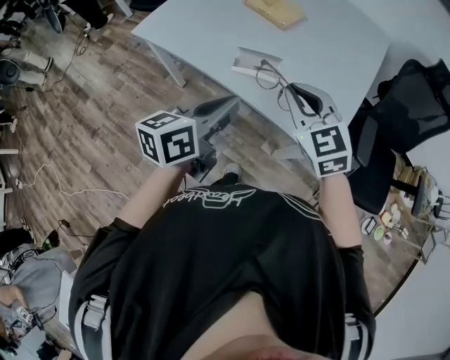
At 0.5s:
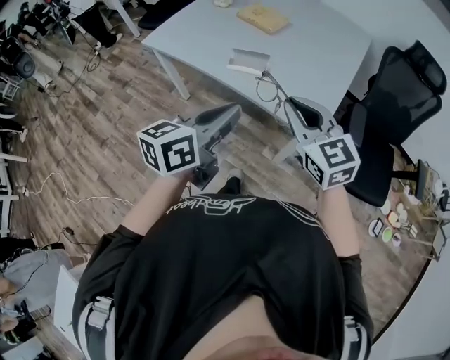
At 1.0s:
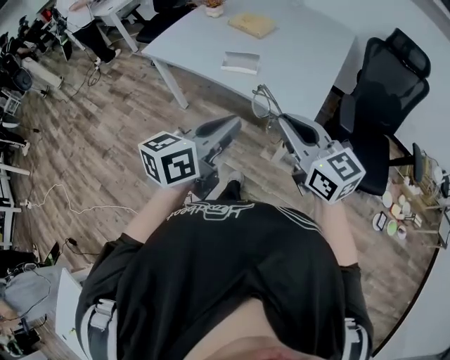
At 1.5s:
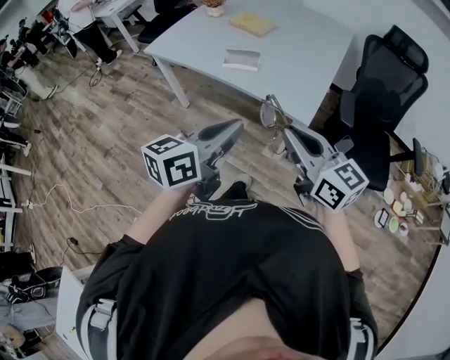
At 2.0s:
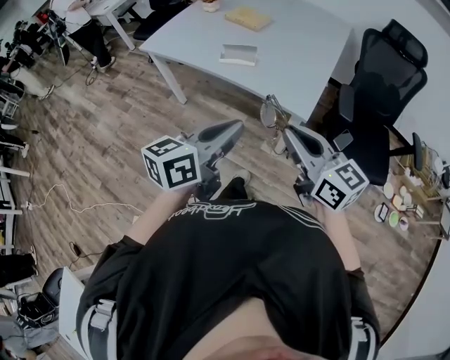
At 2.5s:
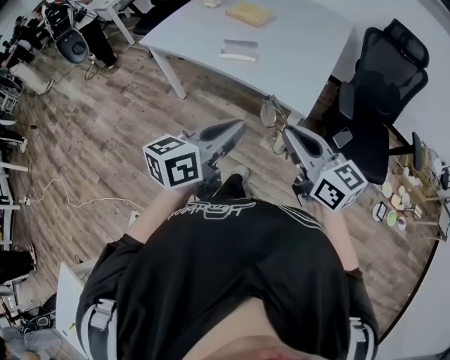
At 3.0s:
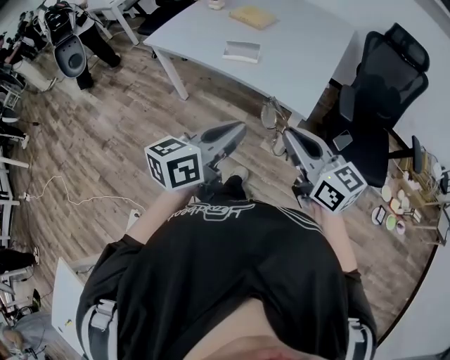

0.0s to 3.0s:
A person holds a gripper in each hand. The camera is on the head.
0.0s to 1.5s: The two grippers go roughly 25 cm backward. The right gripper changes its angle by approximately 40 degrees.
1.5s to 3.0s: The grippers make only small movements.

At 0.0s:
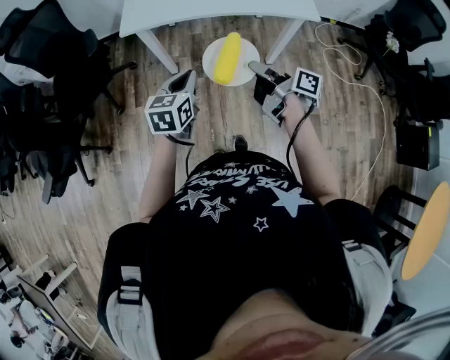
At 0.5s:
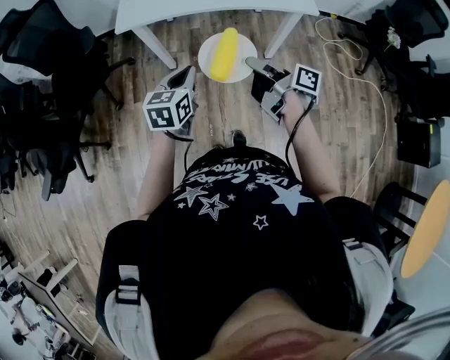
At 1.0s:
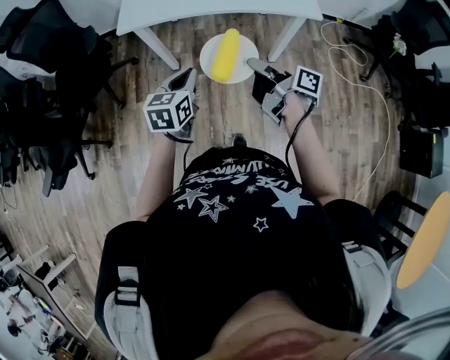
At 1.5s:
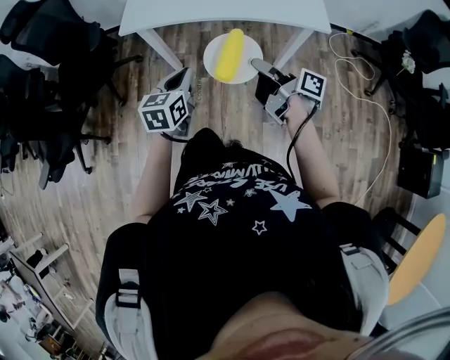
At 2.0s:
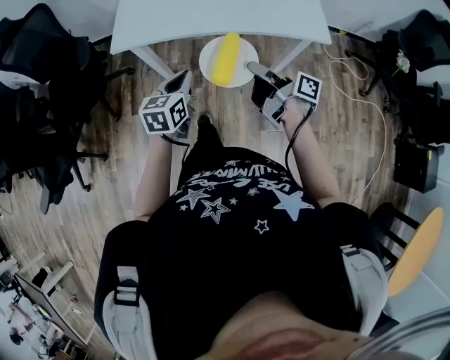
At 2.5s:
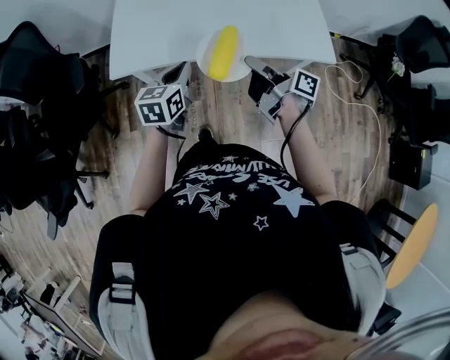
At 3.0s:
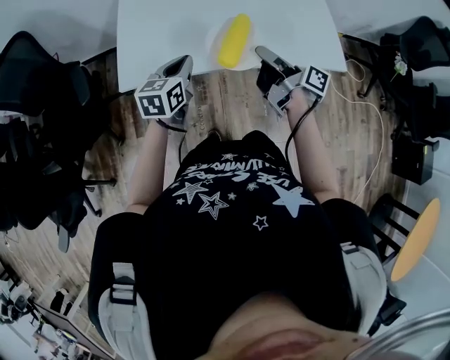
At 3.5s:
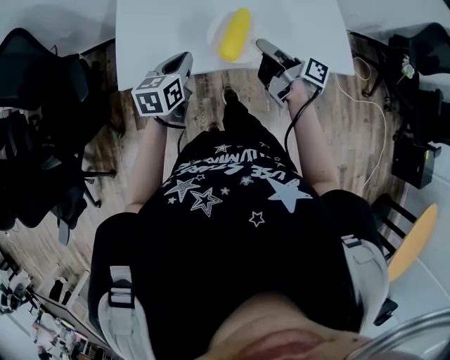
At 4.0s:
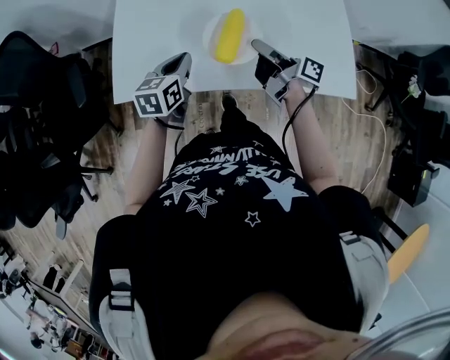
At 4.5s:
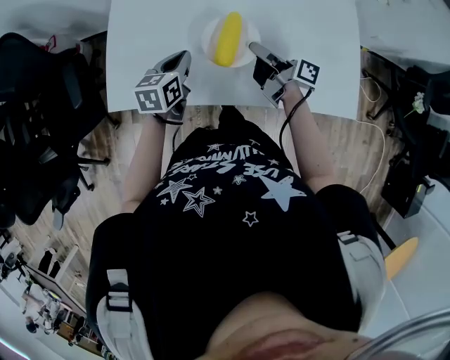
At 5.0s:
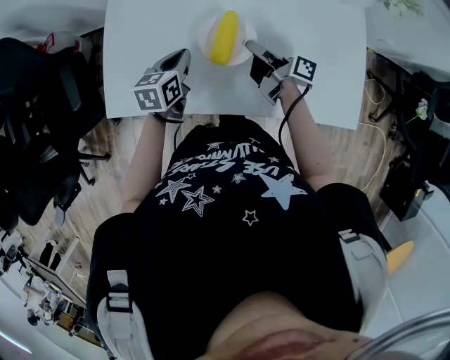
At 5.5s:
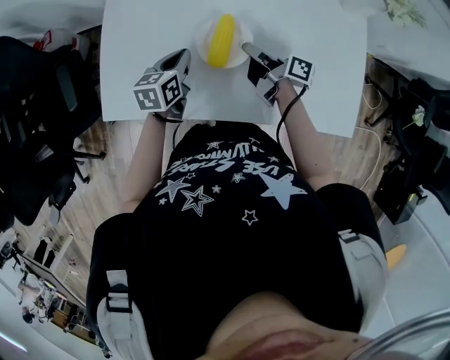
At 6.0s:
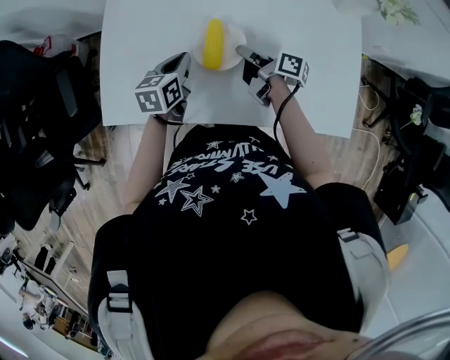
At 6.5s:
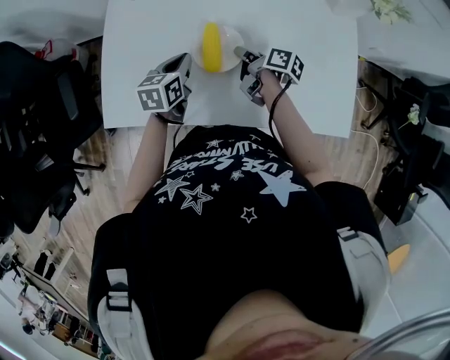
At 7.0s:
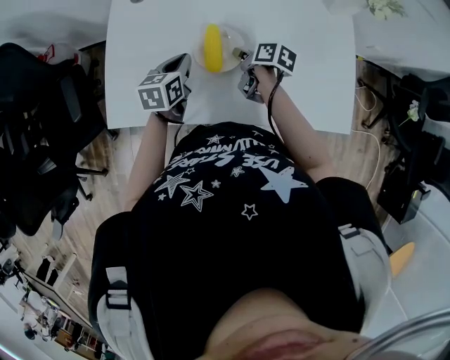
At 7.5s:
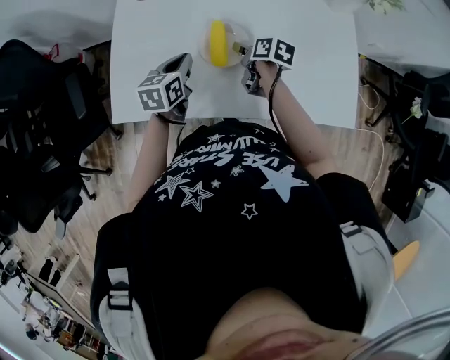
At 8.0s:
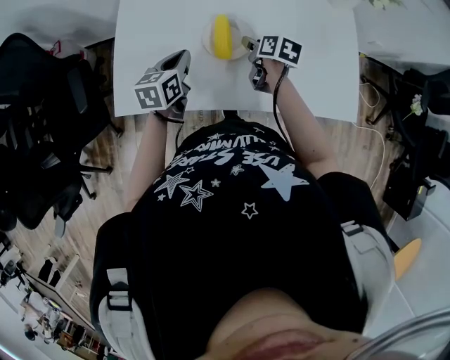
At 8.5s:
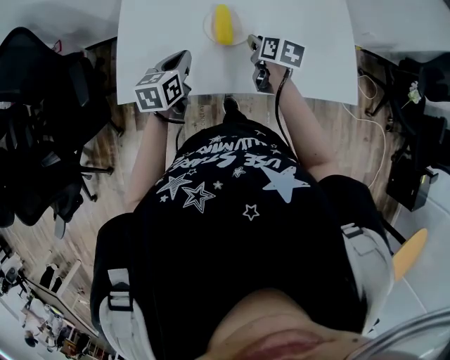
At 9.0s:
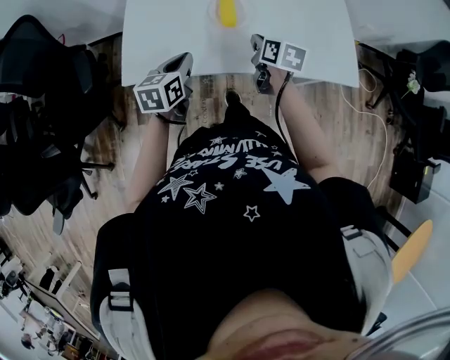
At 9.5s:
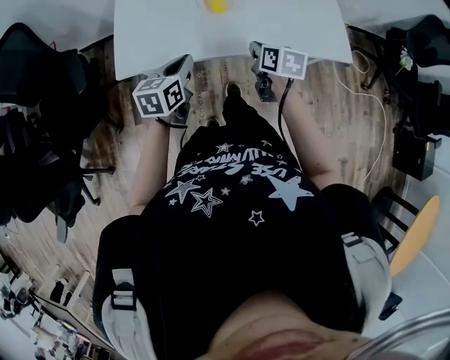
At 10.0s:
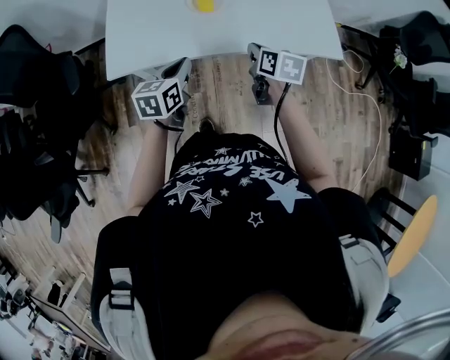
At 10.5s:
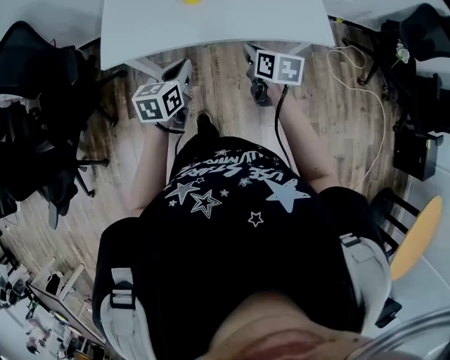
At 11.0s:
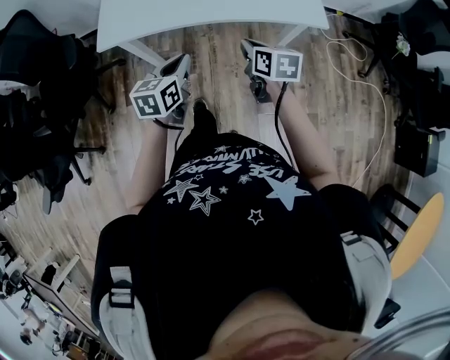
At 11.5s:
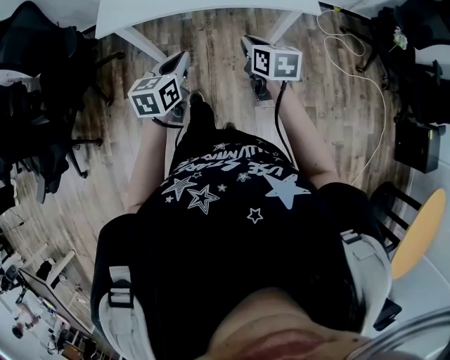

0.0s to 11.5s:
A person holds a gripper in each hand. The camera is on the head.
0.0s to 2.0s: Both grippers move forward, some 15 cm.
2.0s to 4.0s: Both grippers travel together forward, some 35 cm.
4.0s to 6.0s: Both grippers travel together forward and downward, some 15 cm.
6.0s to 7.5s: The right gripper rotates some 40 degrees, and opens.
7.5s to 9.5s: Both grippers move backward, about 25 cm. The right gripper changes its angle by about 20 degrees, and closes.
9.5s to 11.5s: The two grippers go roughly 25 cm backward and to the right.

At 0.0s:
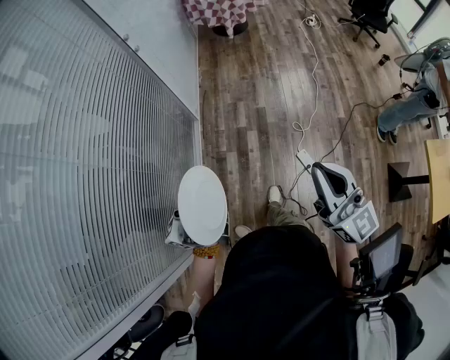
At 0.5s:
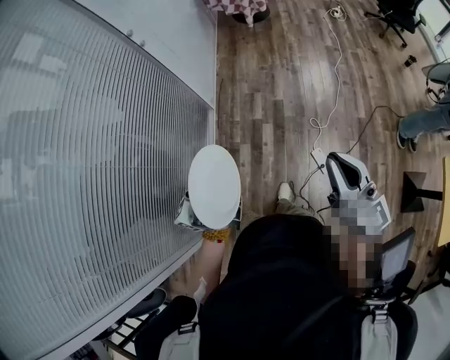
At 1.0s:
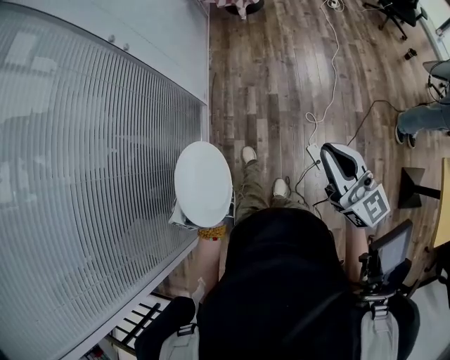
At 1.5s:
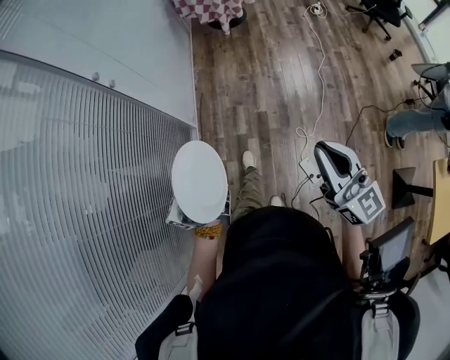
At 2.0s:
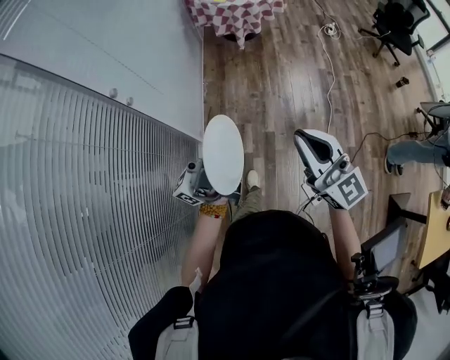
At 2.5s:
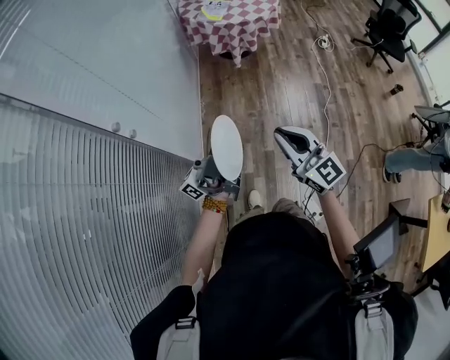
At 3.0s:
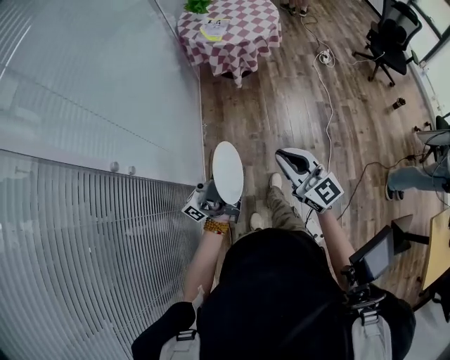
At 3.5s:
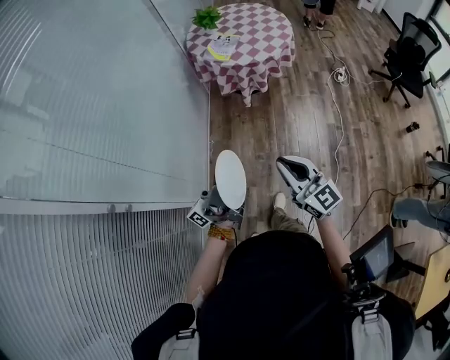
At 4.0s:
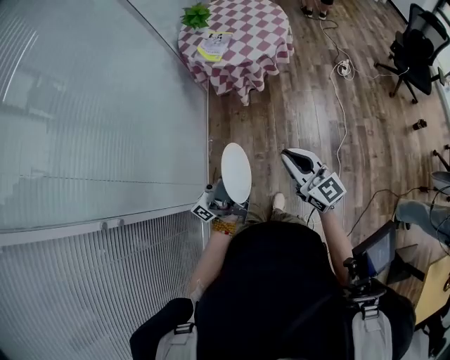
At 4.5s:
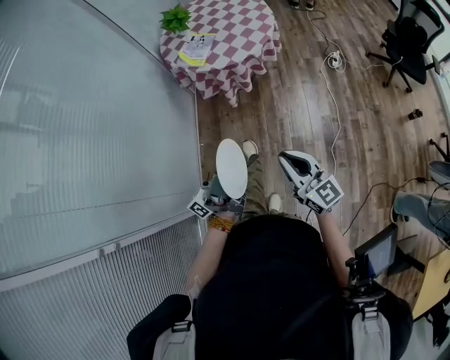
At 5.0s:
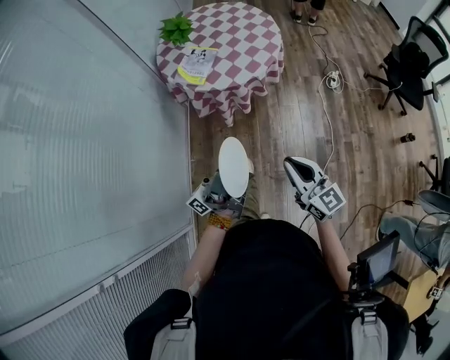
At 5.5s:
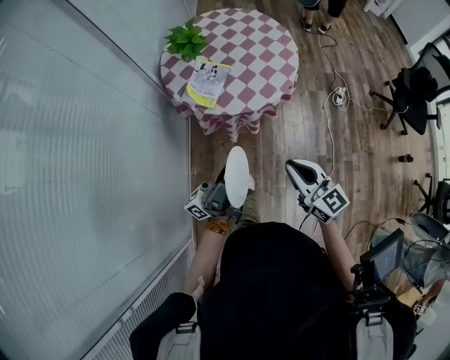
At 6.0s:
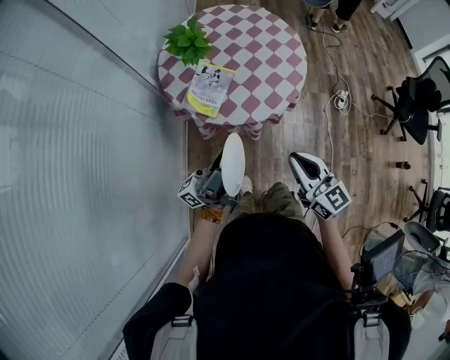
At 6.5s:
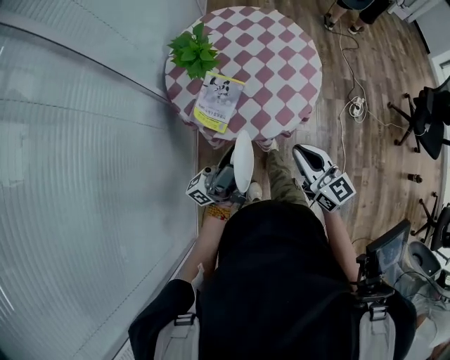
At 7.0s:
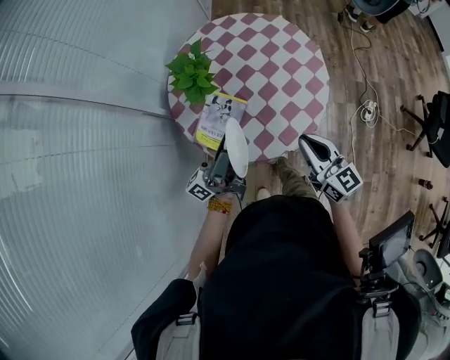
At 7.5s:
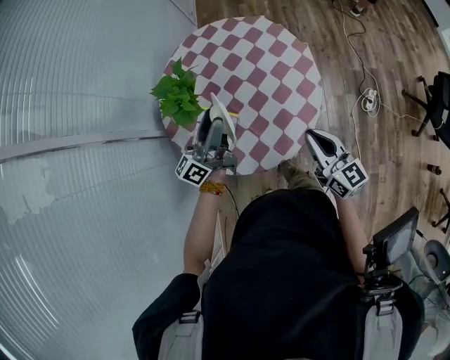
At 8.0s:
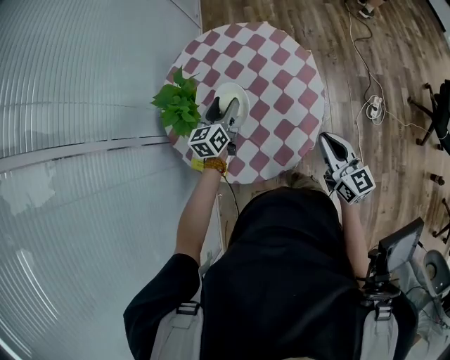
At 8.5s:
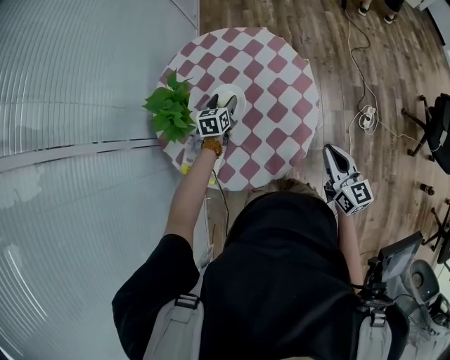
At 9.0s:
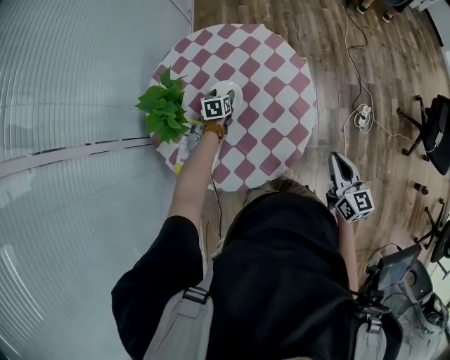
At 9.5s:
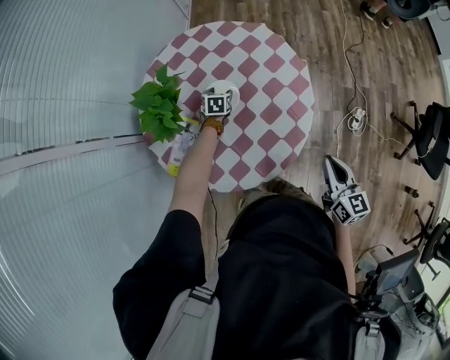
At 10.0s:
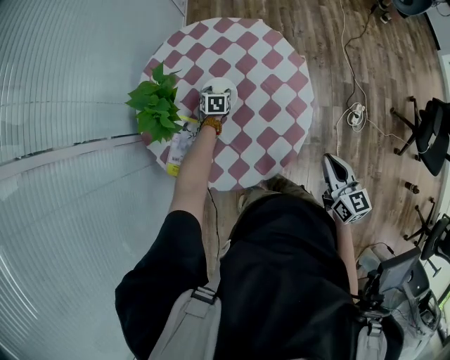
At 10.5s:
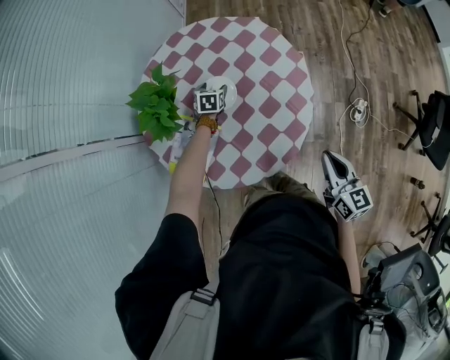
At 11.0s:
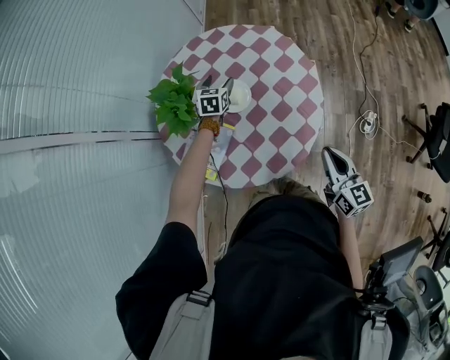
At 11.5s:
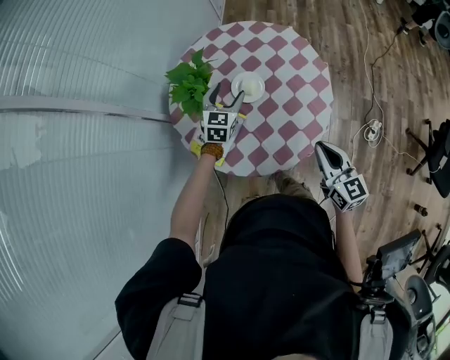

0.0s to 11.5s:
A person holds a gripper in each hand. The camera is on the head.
0.0s to 2.0s: The pair of grippers is taken forward, about 50 cm.
2.0s to 4.0s: The pair of grippers is taken forward, some 40 cm.
4.0s to 6.0s: The pair of grippers is taken forward, about 50 cm.
6.0s to 7.5s: The right gripper heads forward and to the right, covering about 35 cm, while the left gripper heads forward, covering approximately 40 cm, and points its fingers approximately 30 degrees further downward.
7.5s to 9.5s: The left gripper goes roughly 40 cm downward and forward, and tilts its fingers roughly 70 degrees downward; the right gripper moves to the right and downward, approximately 15 cm.
9.5s to 11.5s: The left gripper is displaced upward and backward by some 25 cm, and swivels about 30 degrees; the right gripper shifts some 10 cm to the left.

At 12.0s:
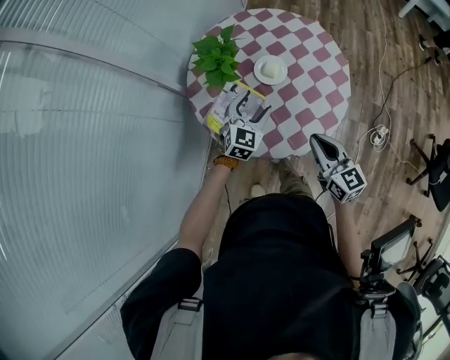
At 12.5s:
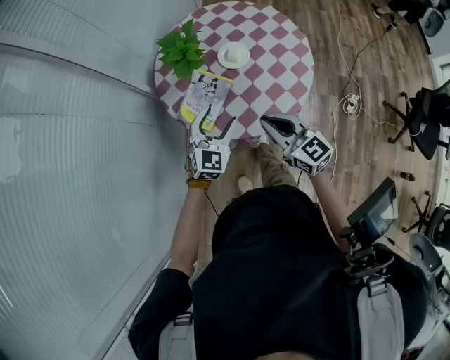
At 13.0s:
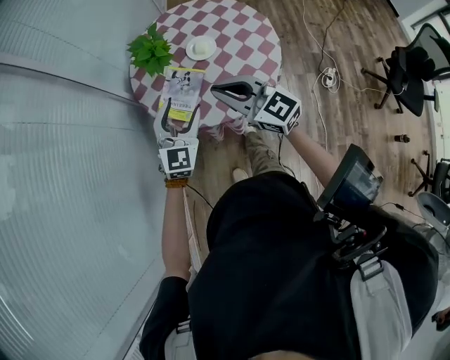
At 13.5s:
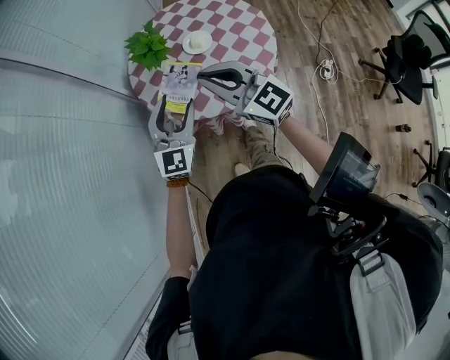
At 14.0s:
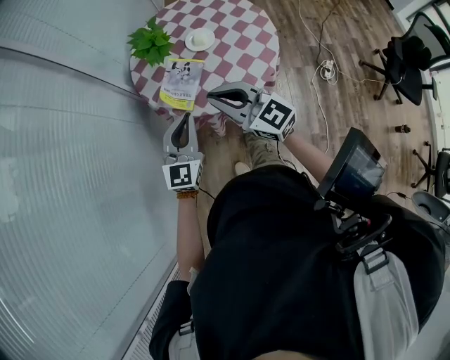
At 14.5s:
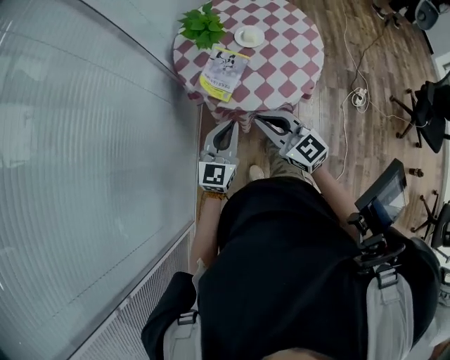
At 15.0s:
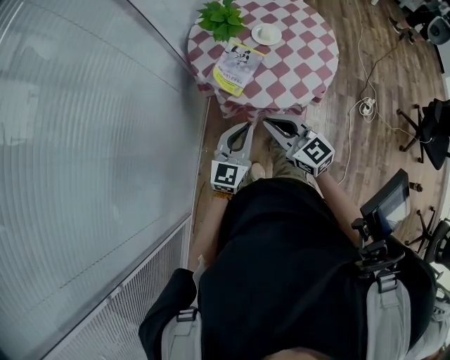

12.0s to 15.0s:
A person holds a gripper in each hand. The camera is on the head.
12.0s to 13.5s: The right gripper travels to the left, upward and backward by approximately 25 cm, and rotates roughly 30 degrees. Meanwhile the left gripper is displaced backward, upward and to the left by roughly 30 cm, and rotates some 20 degrees.
13.5s to 15.0s: The left gripper heads backward and downward, covering some 15 cm, and closes, while the right gripper travels downward, backward and to the left by about 15 cm.
